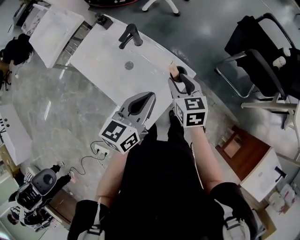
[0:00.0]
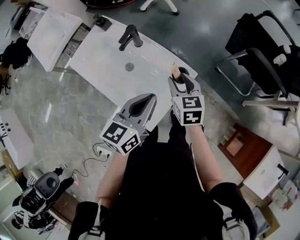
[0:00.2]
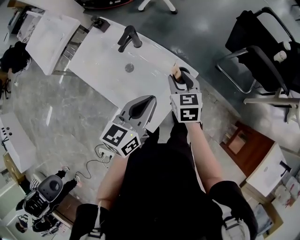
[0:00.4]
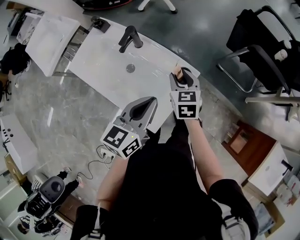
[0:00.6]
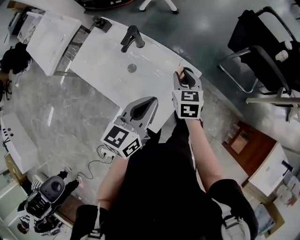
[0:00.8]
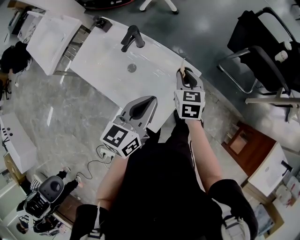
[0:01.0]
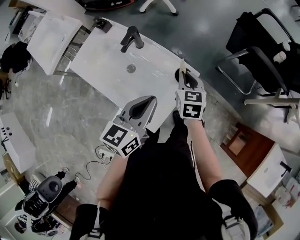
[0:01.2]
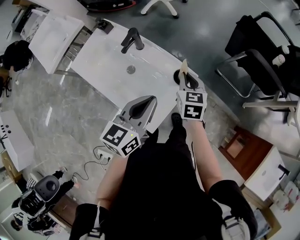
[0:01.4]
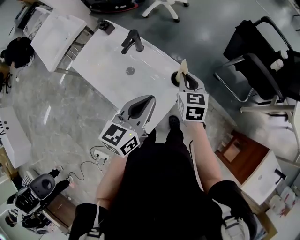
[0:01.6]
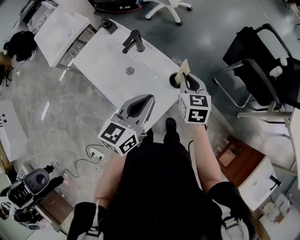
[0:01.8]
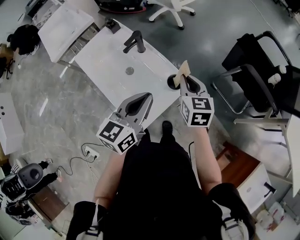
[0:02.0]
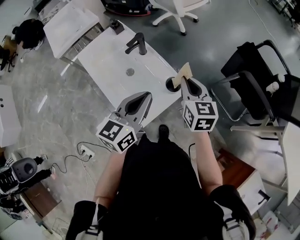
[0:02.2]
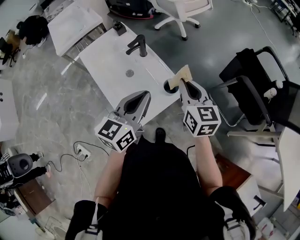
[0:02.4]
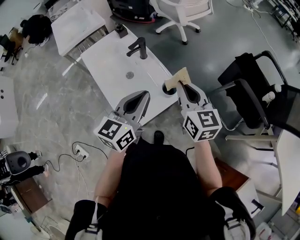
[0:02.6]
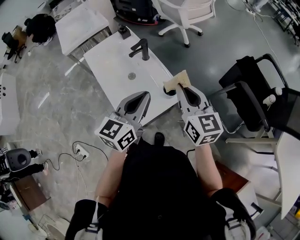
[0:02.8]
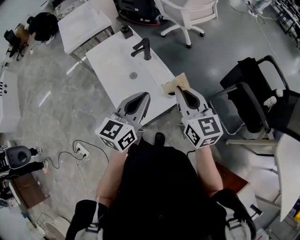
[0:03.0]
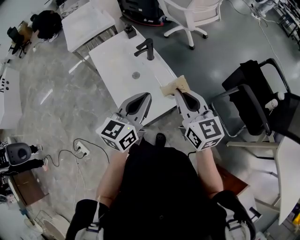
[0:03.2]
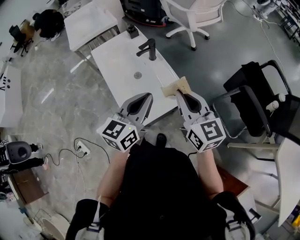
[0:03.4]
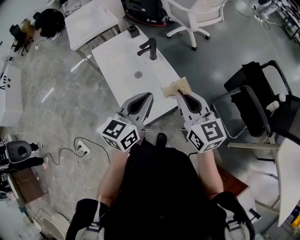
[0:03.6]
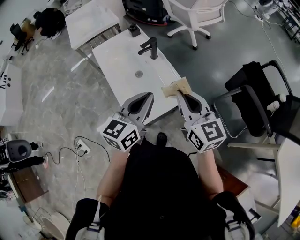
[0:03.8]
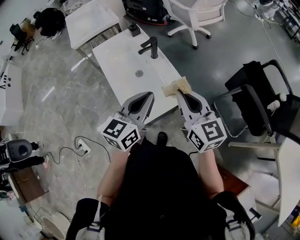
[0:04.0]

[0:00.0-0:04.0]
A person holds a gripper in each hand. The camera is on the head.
0:00.0 to 0:01.4: The right gripper shifts by some 5 cm, and closes up.
0:01.4 to 0:02.6: The left gripper goes about 5 cm upward, and turns by approximately 20 degrees, while the right gripper is displaced upward by about 15 cm, and turns by some 40 degrees.
0:02.6 to 0:04.0: The right gripper shifts by roughly 5 cm.

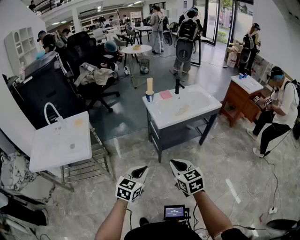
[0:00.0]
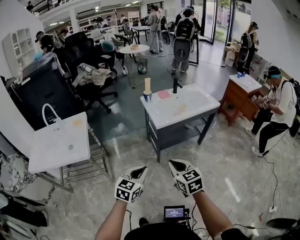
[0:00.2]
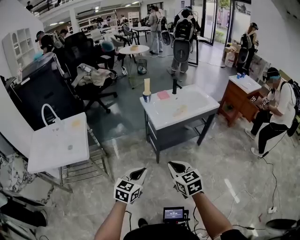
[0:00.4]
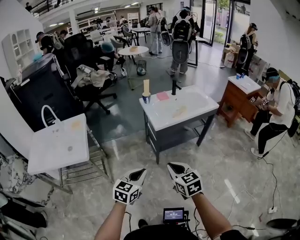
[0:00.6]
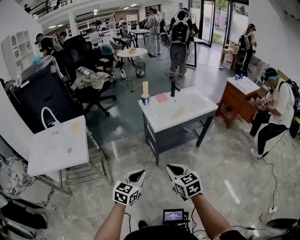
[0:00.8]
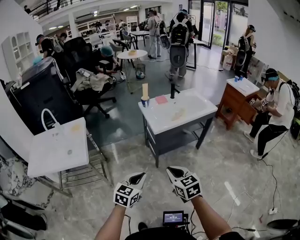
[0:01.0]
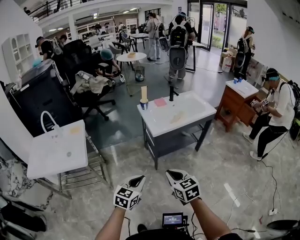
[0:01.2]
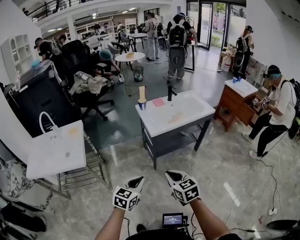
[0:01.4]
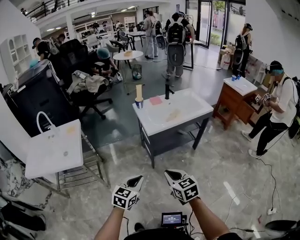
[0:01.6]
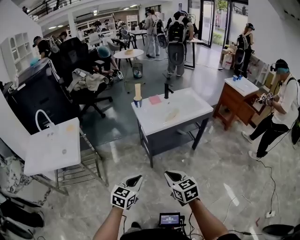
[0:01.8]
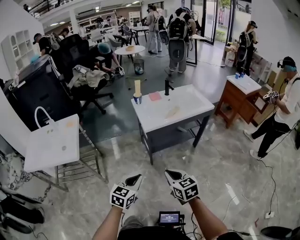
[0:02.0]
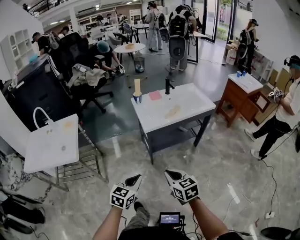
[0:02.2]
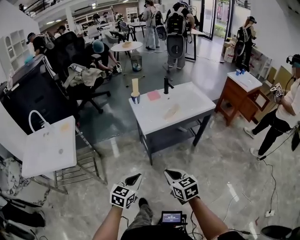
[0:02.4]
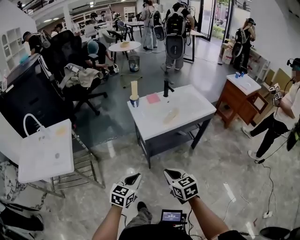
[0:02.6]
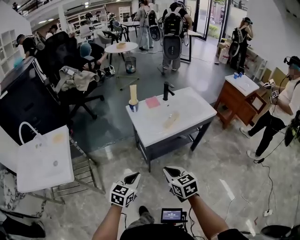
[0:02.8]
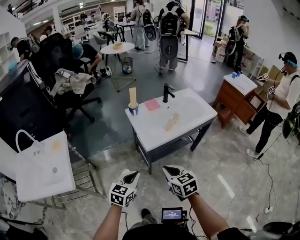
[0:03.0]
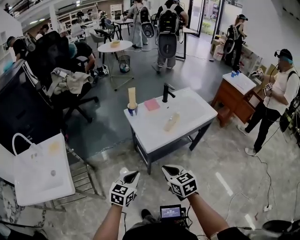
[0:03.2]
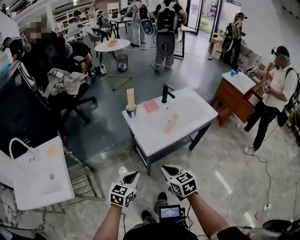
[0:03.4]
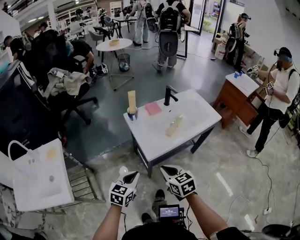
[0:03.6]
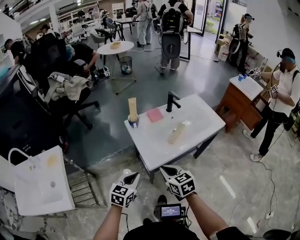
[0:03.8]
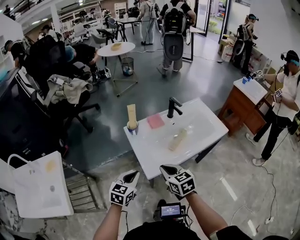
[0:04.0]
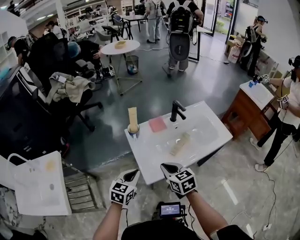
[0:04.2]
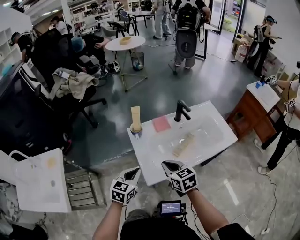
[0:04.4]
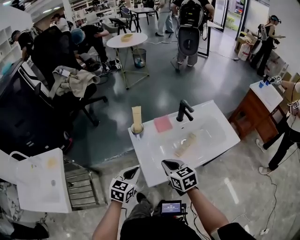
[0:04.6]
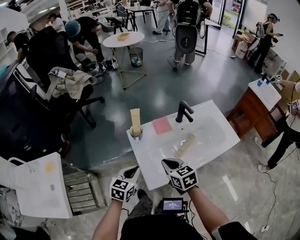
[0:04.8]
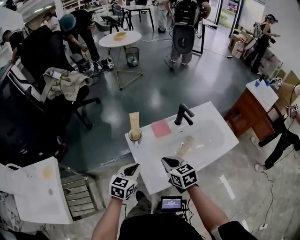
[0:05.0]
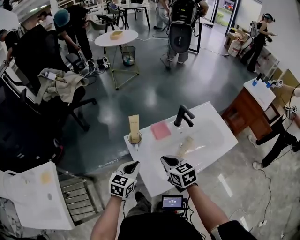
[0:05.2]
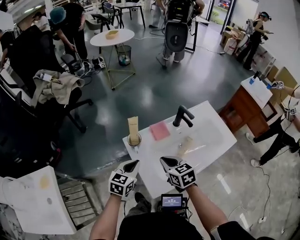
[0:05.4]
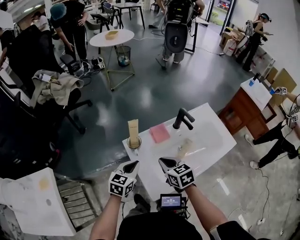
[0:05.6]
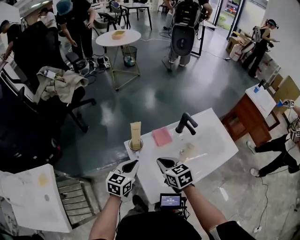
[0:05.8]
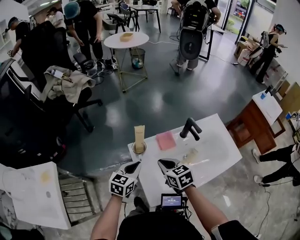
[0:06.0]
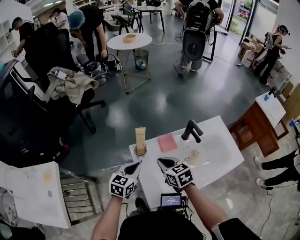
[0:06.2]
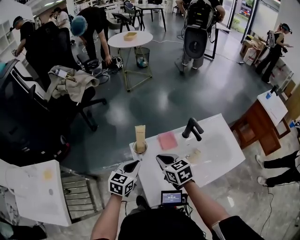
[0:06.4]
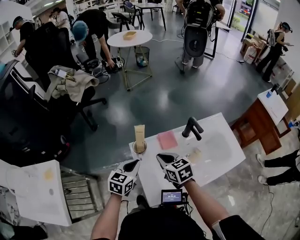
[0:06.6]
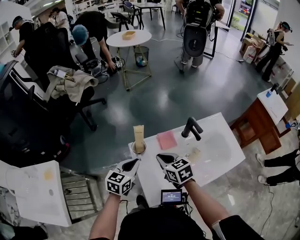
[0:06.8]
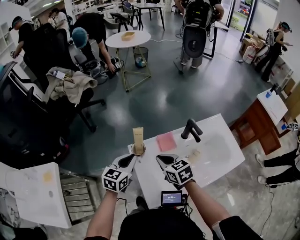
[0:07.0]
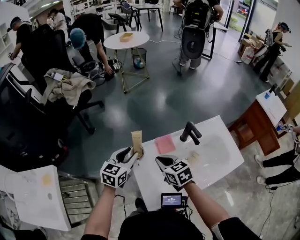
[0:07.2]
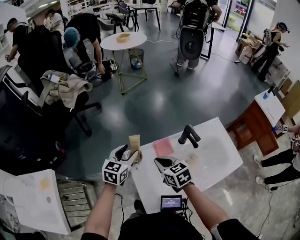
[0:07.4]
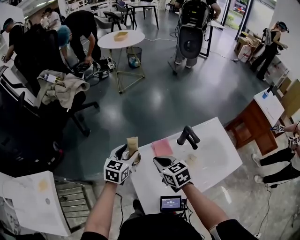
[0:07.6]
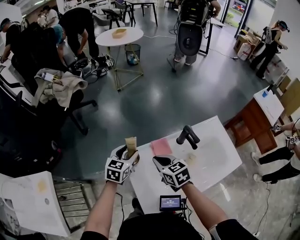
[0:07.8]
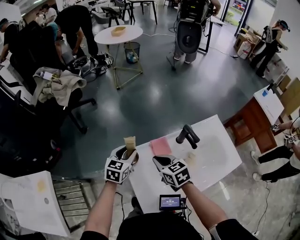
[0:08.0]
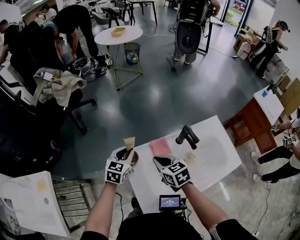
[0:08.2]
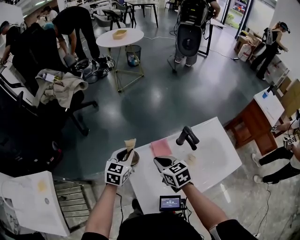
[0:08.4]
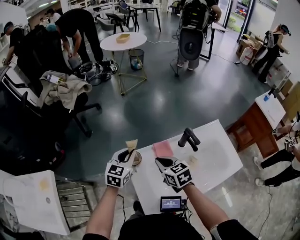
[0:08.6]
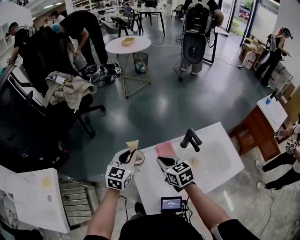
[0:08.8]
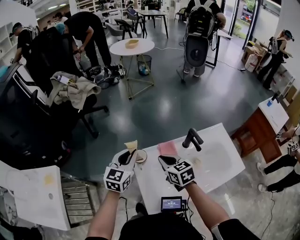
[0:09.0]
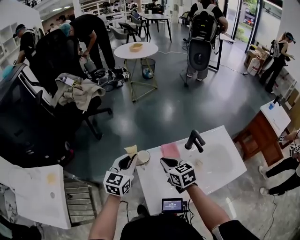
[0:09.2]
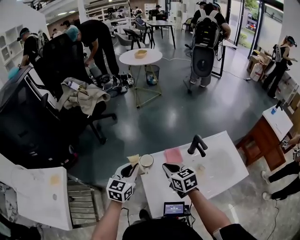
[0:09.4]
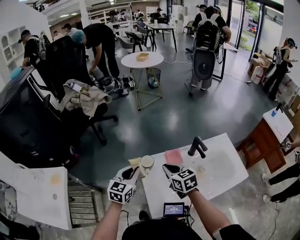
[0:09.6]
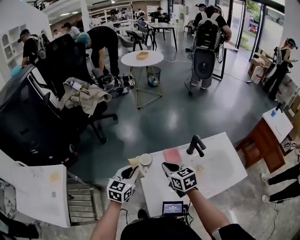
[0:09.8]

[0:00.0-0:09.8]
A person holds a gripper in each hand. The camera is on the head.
0:00.0 to 0:01.4: There are only small adjustments of the grippers.
0:01.4 to 0:02.8: Both grippers travel together forward, approximately 15 cm.
0:02.8 to 0:04.2: Both grippers move forward, some 30 cm.
0:04.2 to 0:05.6: The two grippers go some 15 cm forward.
0:05.6 to 0:07.0: Both grippers travel together forward, approximately 5 cm.
0:07.0 to 0:08.4: The left gripper is displaced forward by about 10 cm, and opens, then closes again.
0:08.4 to 0:09.8: The left gripper goes about 15 cm backward, to the left and upward; the right gripper shifts by roughly 5 cm.

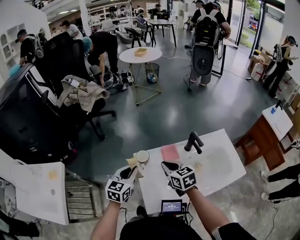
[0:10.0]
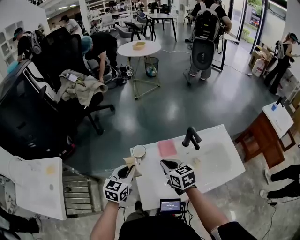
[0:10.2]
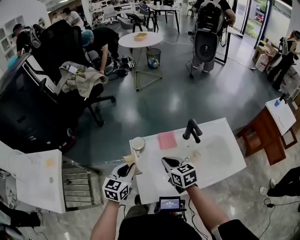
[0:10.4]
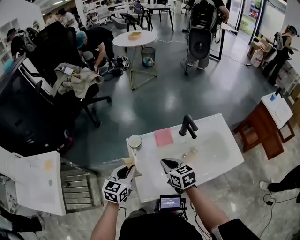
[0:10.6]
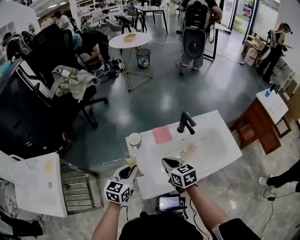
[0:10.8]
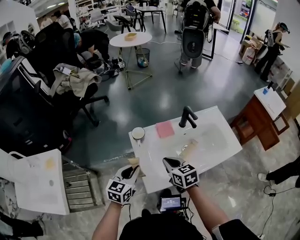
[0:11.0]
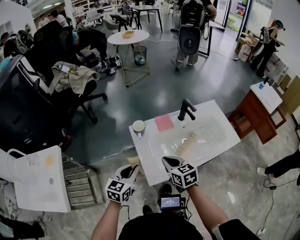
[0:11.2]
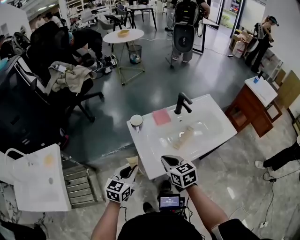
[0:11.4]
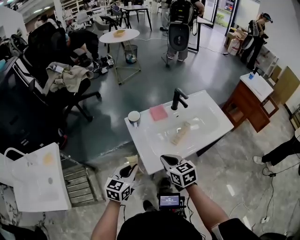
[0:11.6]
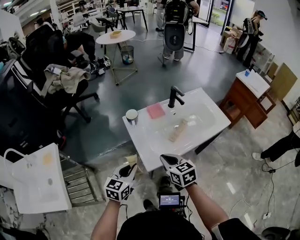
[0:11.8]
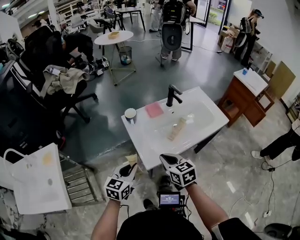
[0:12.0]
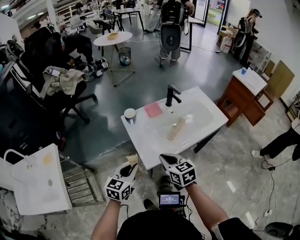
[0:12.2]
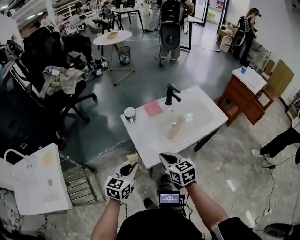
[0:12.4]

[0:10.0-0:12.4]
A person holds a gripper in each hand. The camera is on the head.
0:10.0 to 0:11.2: Both grippers move backward, approximately 15 cm.
0:11.2 to 0:12.4: The grippers both shift backward by roughly 10 cm.

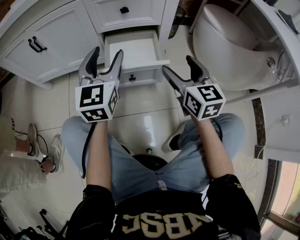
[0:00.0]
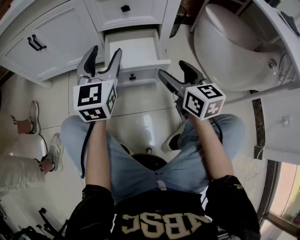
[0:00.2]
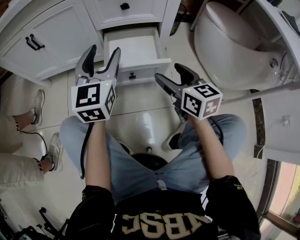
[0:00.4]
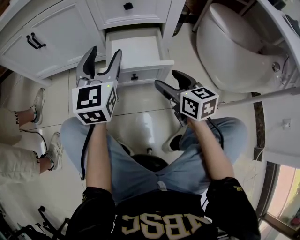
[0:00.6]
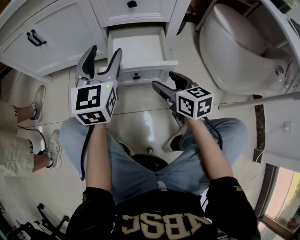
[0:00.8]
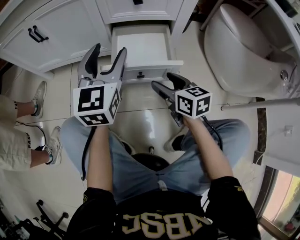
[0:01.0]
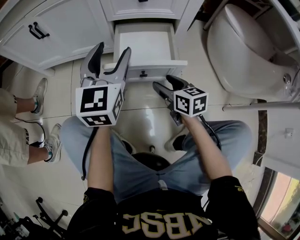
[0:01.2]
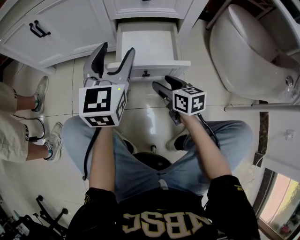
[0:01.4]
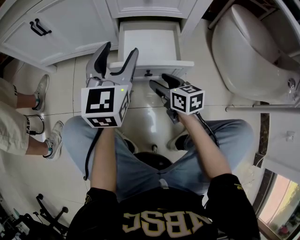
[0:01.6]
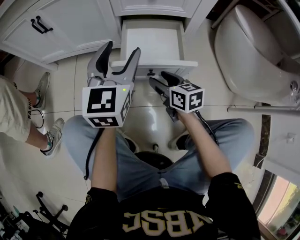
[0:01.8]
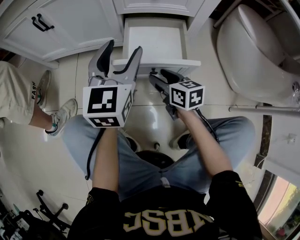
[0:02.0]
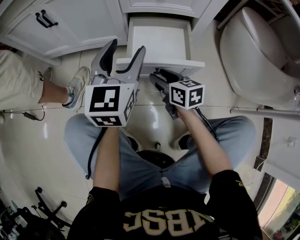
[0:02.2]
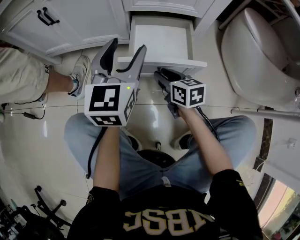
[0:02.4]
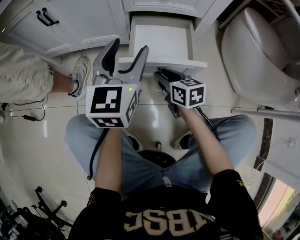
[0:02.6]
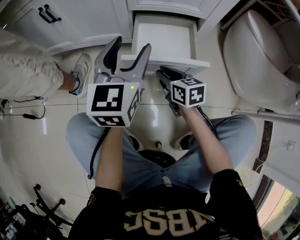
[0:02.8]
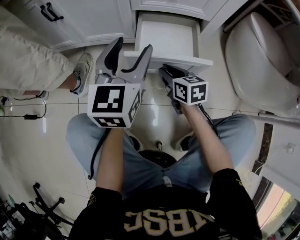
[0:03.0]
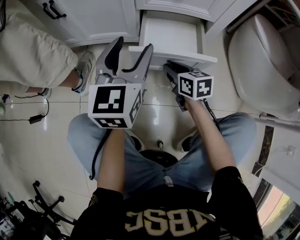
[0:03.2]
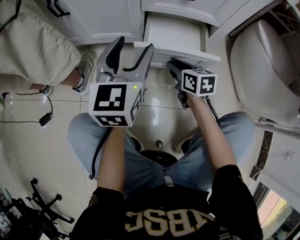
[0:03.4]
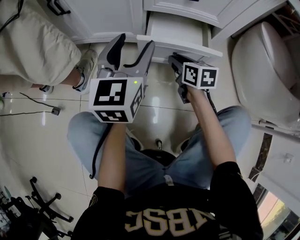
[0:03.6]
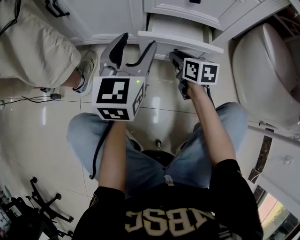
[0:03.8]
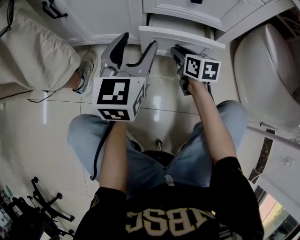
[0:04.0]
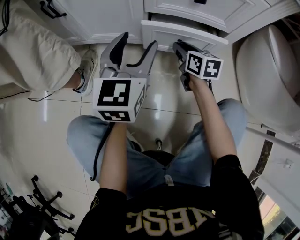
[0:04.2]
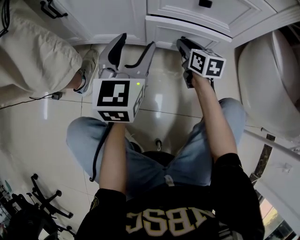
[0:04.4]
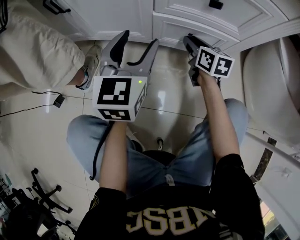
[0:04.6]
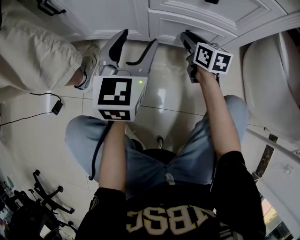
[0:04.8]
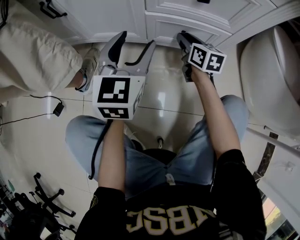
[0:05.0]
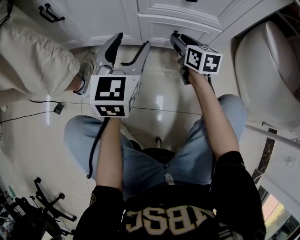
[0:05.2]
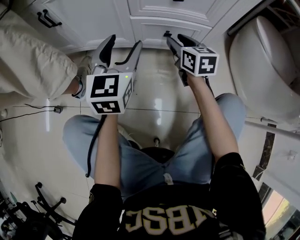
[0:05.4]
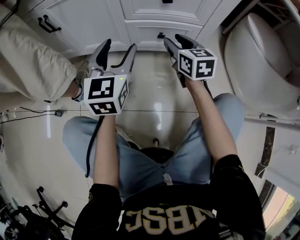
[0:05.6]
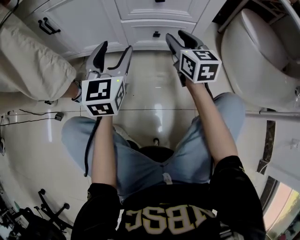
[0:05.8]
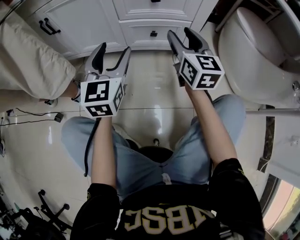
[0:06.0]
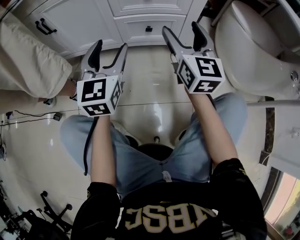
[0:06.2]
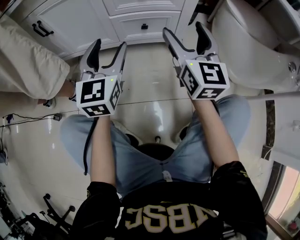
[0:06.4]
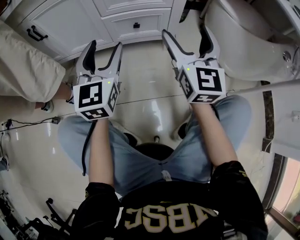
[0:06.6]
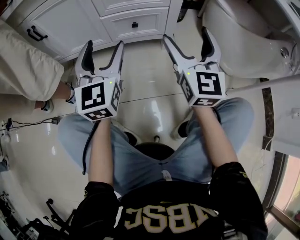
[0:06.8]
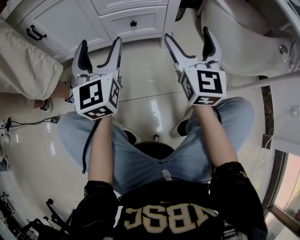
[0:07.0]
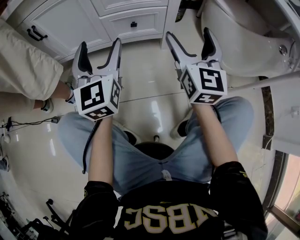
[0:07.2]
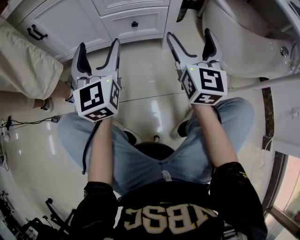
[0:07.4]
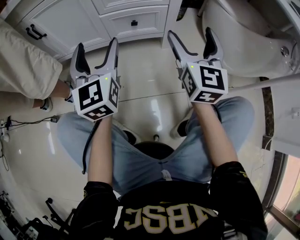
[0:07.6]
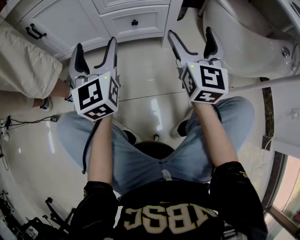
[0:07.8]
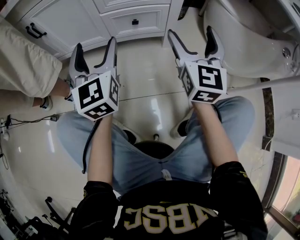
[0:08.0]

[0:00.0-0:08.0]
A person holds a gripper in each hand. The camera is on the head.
0:00.0 to 0:01.6: The right gripper moves downward and to the left, about 20 cm, and turns by approximately 30 degrees.
0:01.6 to 0:03.2: The right gripper heads forward, covering roughly 5 cm.
0:03.2 to 0:04.8: The left gripper travels forward by approximately 10 cm; the right gripper goes roughly 15 cm forward.
0:04.8 to 0:06.4: The left gripper shifts roughly 10 cm backward and upward; the right gripper goes approximately 30 cm upward and backward, angles its fingers upward, by about 30 degrees, and opens its fingers.
0:06.4 to 0:08.0: The right gripper moves approximately 5 cm.
